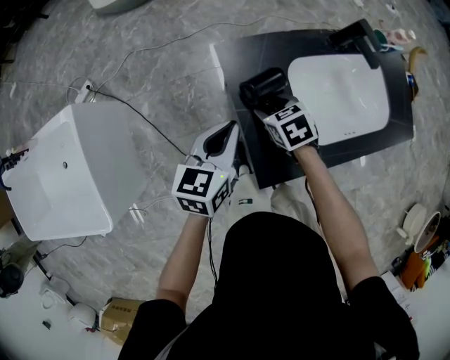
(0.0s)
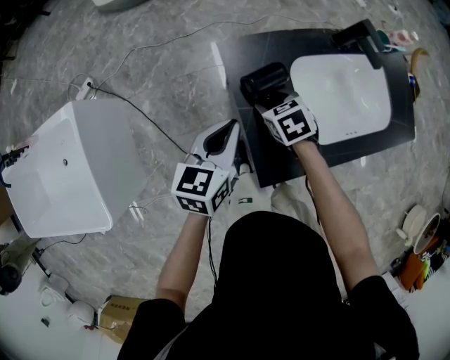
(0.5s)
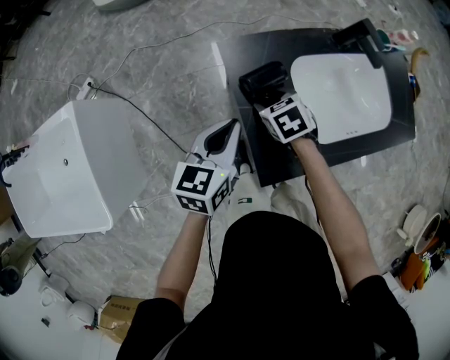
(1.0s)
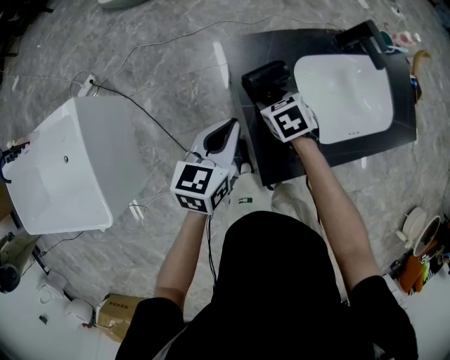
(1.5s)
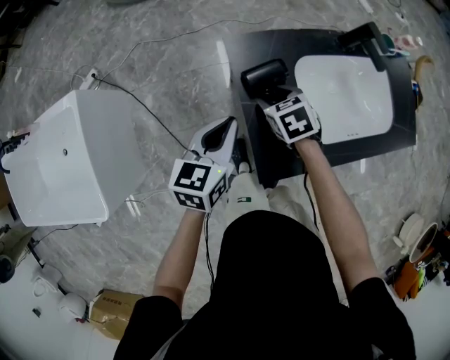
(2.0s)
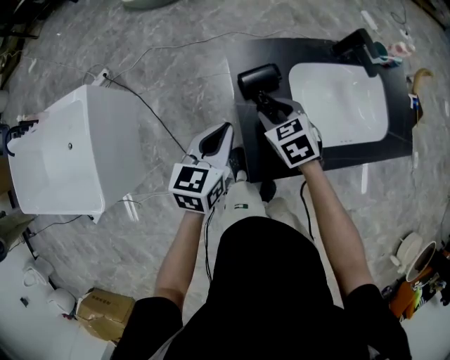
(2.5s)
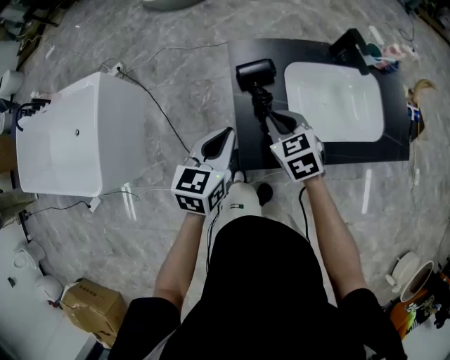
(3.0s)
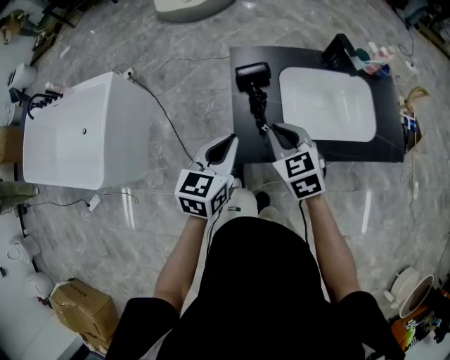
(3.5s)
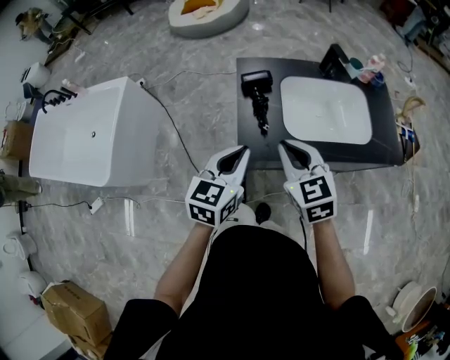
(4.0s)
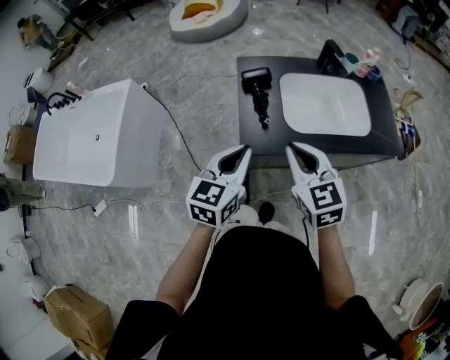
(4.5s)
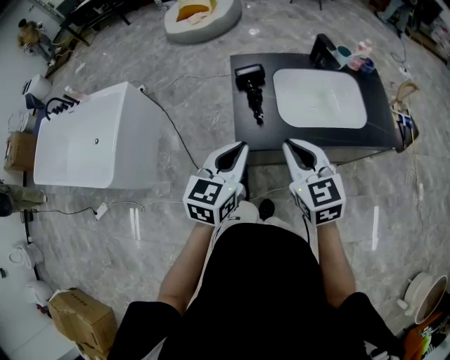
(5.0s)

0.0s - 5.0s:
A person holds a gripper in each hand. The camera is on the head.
0.0s - 2.5s: The right gripper travels upward by about 5 cm.
2.5s - 5.0s: Both grippers travel together backward and upward, roughly 30 cm. The right gripper points its fingers roughly 30 degrees further upward, and closes.

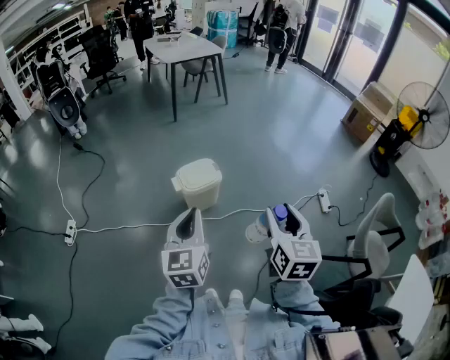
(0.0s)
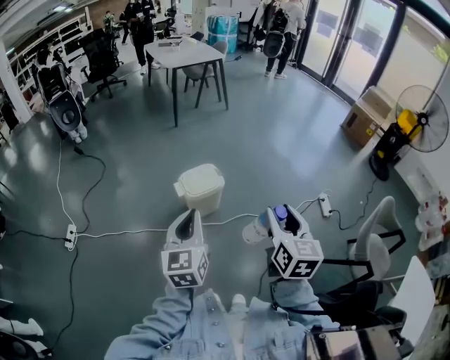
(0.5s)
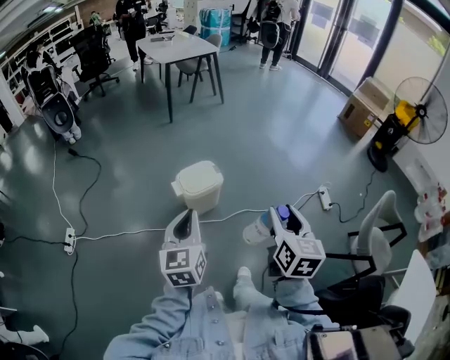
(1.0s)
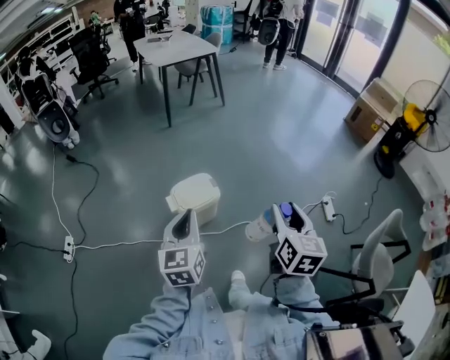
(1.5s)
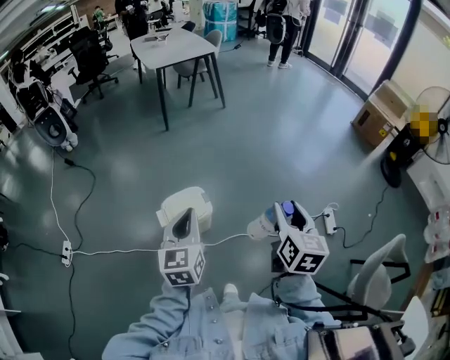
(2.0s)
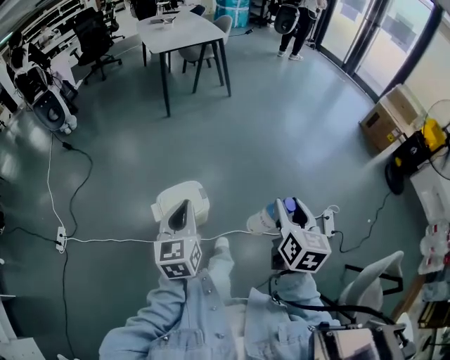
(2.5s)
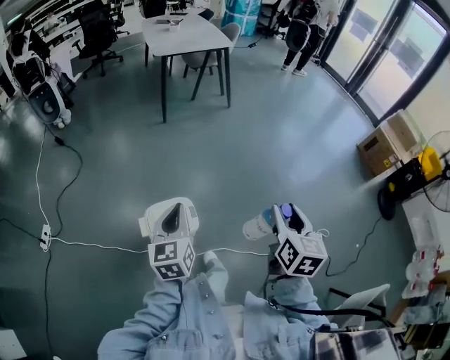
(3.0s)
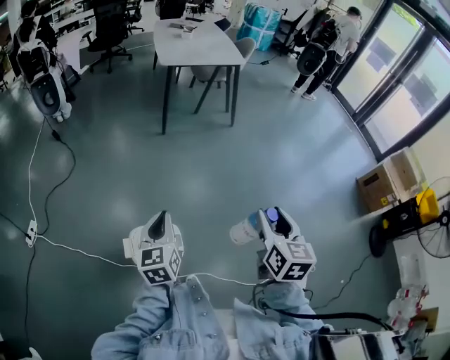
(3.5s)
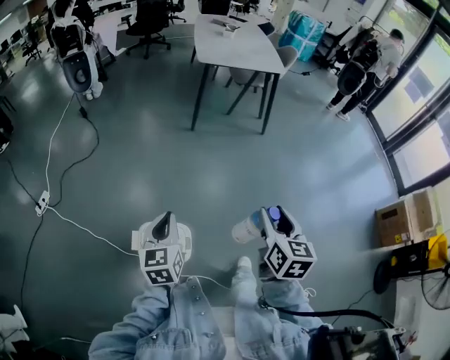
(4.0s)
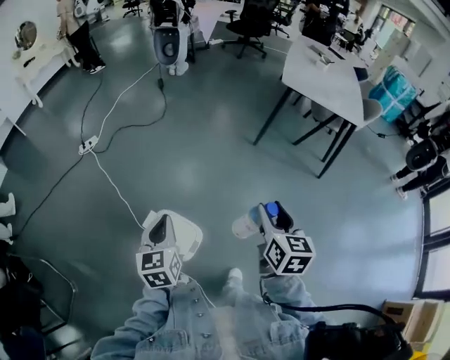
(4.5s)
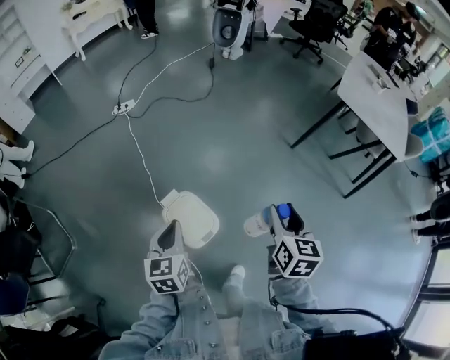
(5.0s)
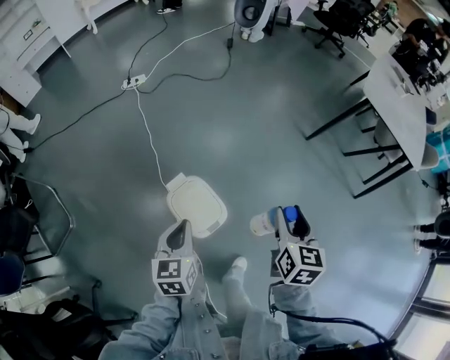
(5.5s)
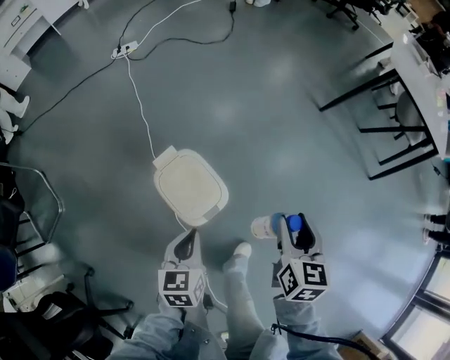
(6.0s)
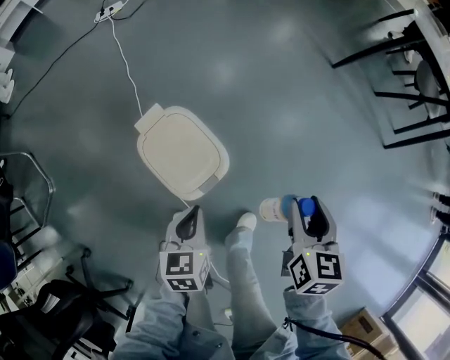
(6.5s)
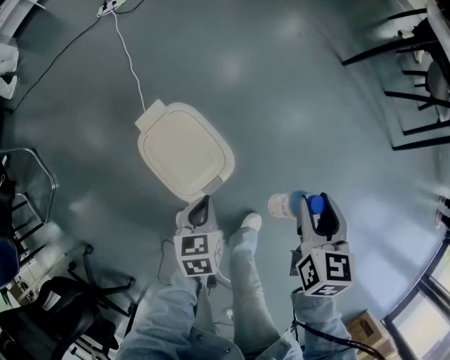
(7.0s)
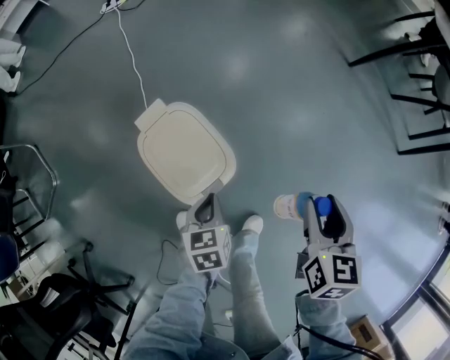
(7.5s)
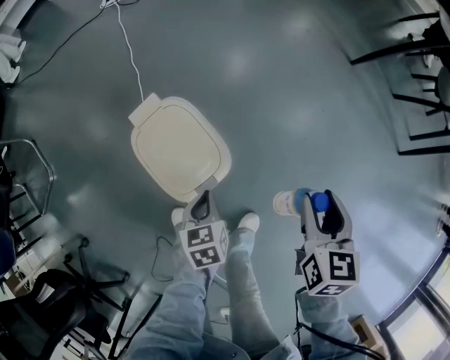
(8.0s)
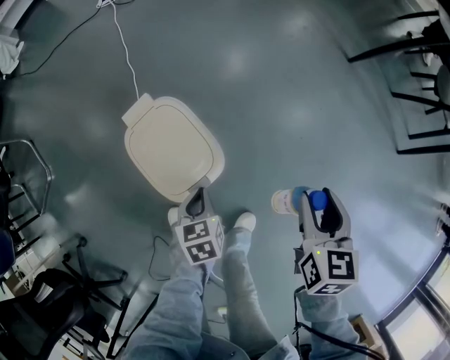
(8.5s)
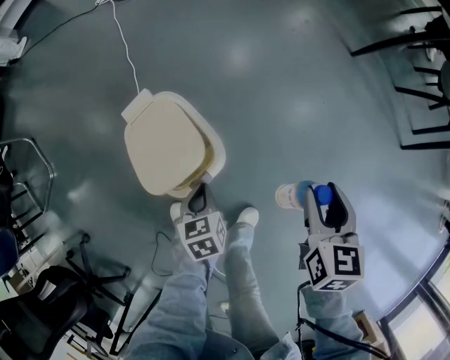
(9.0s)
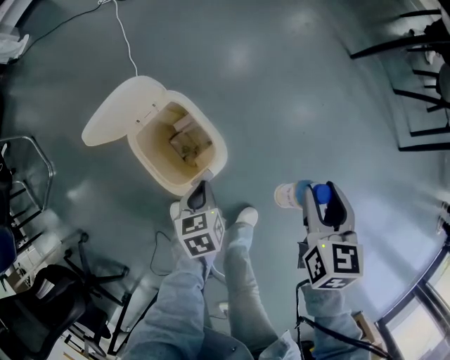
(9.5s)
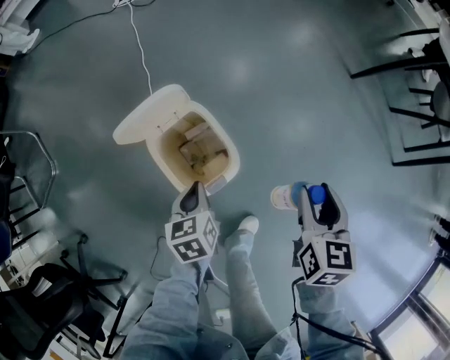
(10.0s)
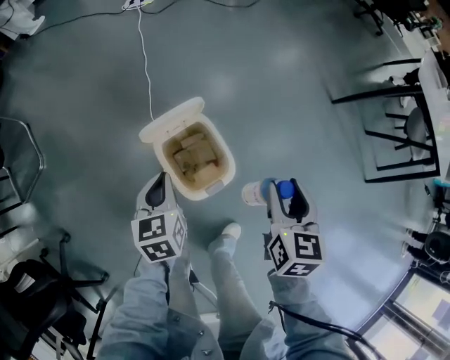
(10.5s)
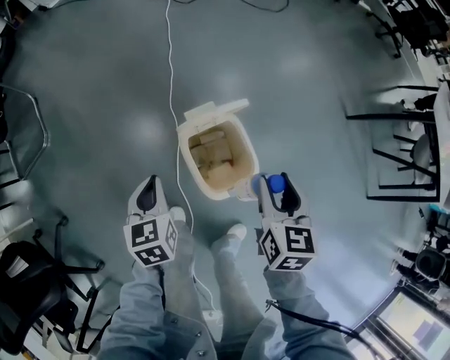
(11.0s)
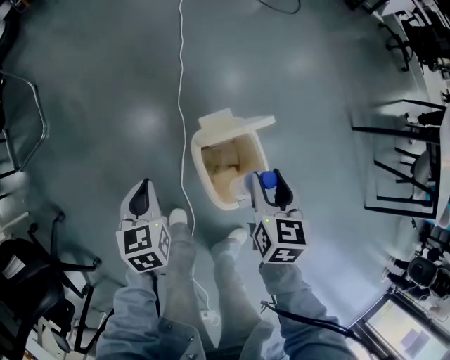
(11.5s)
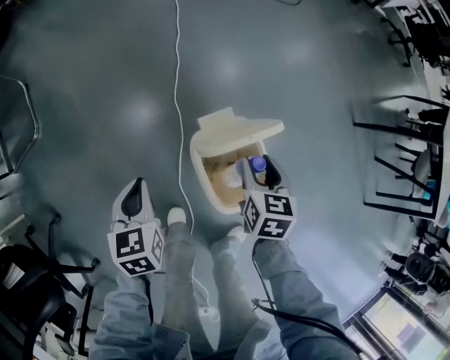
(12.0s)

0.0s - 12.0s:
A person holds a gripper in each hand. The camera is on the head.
0.0s - 2.0s: Both grippers move forward, approximately 30 cm.
2.0s - 4.0s: The right gripper moves approximately 40 cm, and rotates approximately 30 degrees; the left gripper changes place by about 35 cm, and changes its angle by roughly 30 degrees.
4.0s - 6.0s: The two grippers go about 25 cm downward. The left gripper changes its angle by approximately 50 degrees, while the right gripper swivels roughly 50 degrees.
6.0s - 8.0s: The left gripper shifts approximately 20 cm downward. The right gripper travels downward by approximately 15 cm.
8.0s - 10.0s: The right gripper moves about 5 cm. Meanwhile the left gripper goes approximately 10 cm upward and to the left.
10.0s - 12.0s: The left gripper is displaced to the left by about 30 cm. Meanwhile the right gripper shifts some 30 cm to the left and forward.

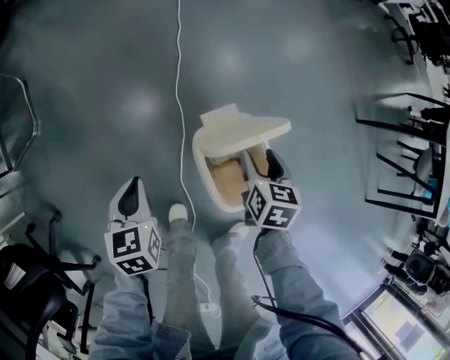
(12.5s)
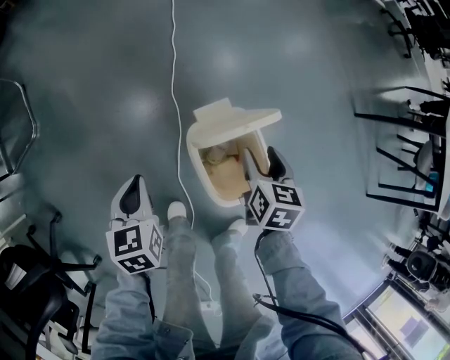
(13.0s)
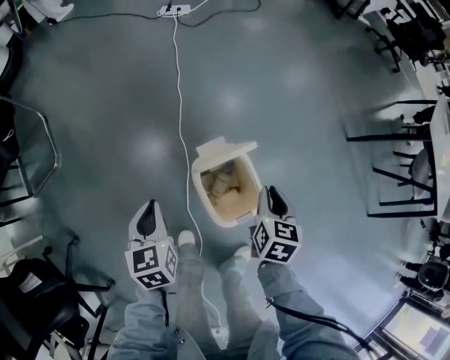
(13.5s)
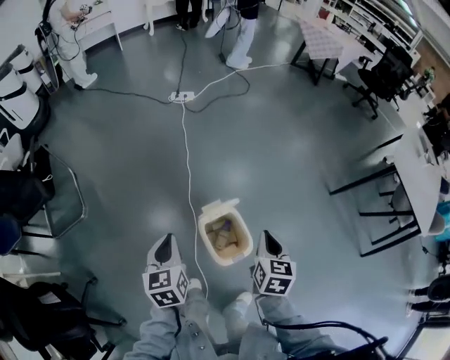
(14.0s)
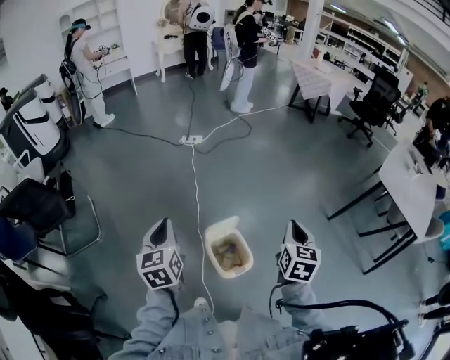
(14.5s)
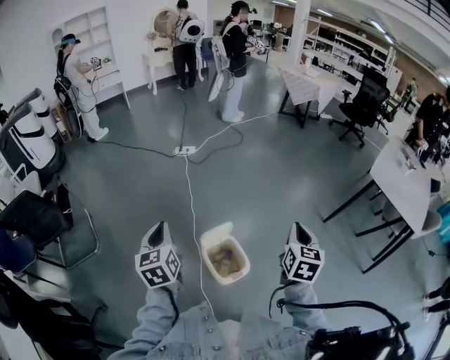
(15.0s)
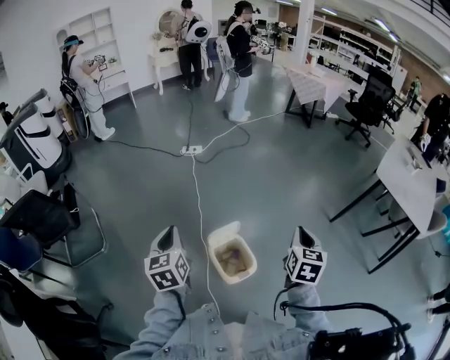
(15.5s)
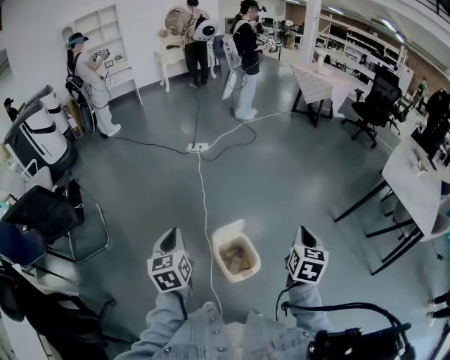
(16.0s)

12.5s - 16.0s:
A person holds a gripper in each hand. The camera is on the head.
12.5s - 14.5s: The two grippers go some 50 cm upward. The left gripper changes its angle by roughly 30 degrees; the right gripper changes its angle by about 30 degrees, and closes up.
14.5s - 16.0s: The grippers stay close to where they were, moving slightly.

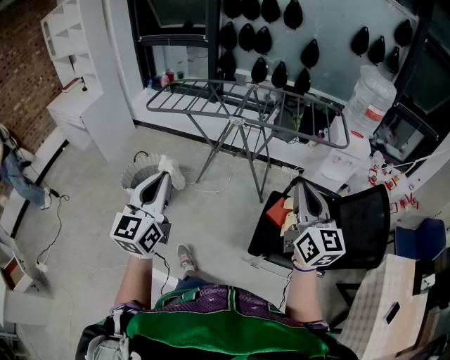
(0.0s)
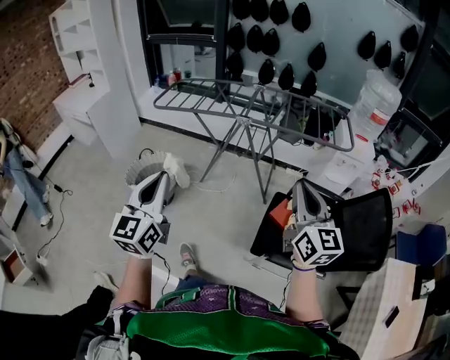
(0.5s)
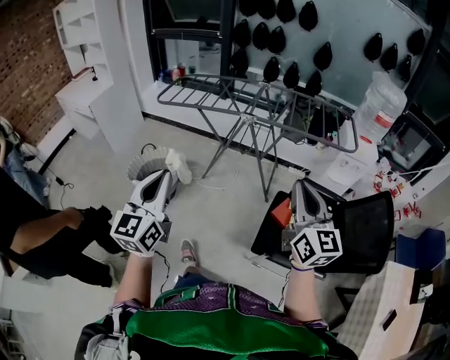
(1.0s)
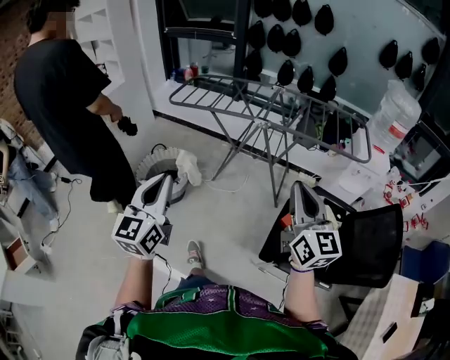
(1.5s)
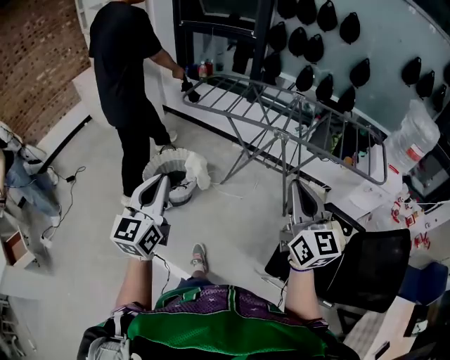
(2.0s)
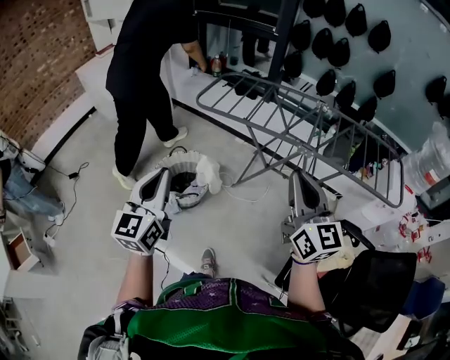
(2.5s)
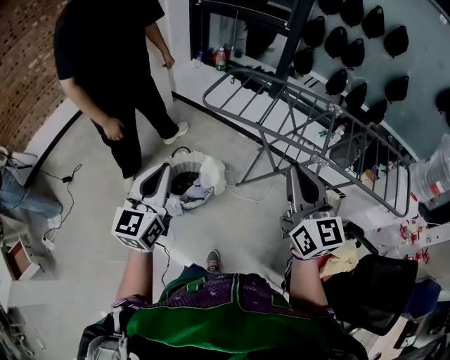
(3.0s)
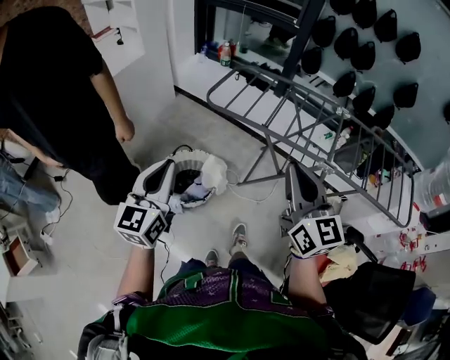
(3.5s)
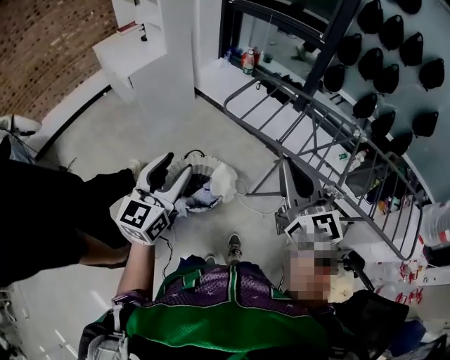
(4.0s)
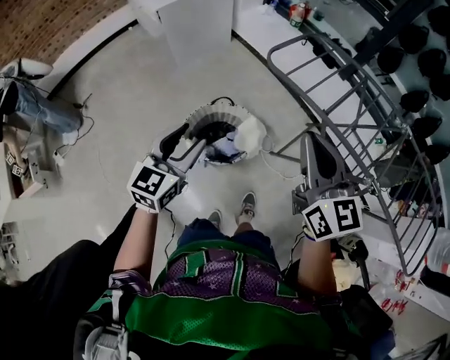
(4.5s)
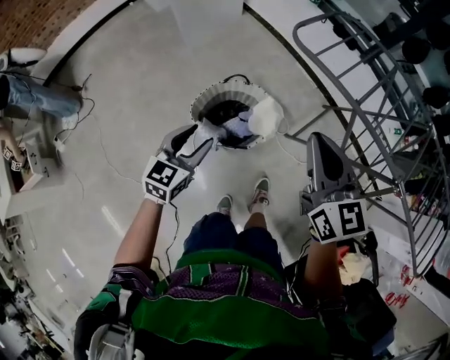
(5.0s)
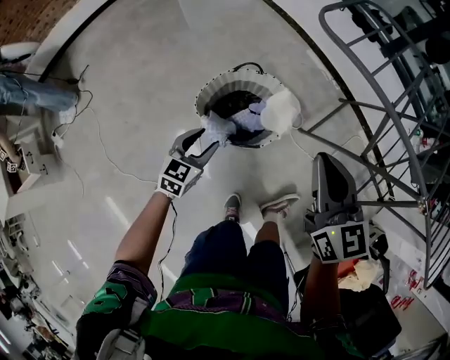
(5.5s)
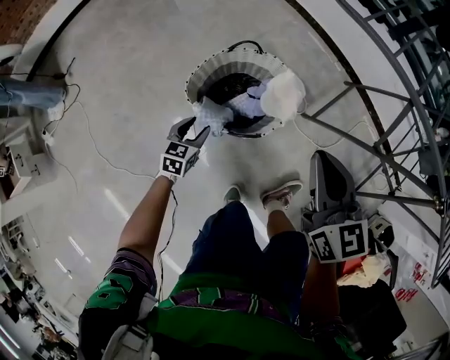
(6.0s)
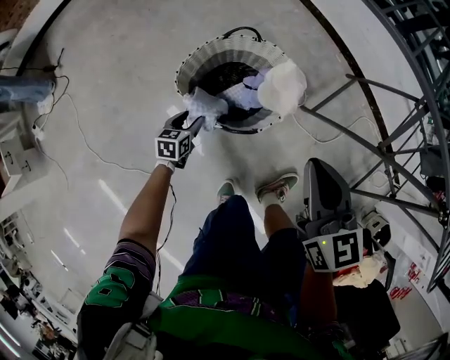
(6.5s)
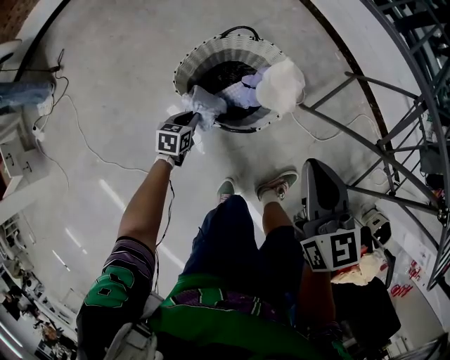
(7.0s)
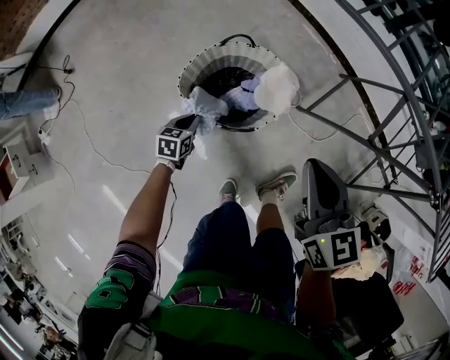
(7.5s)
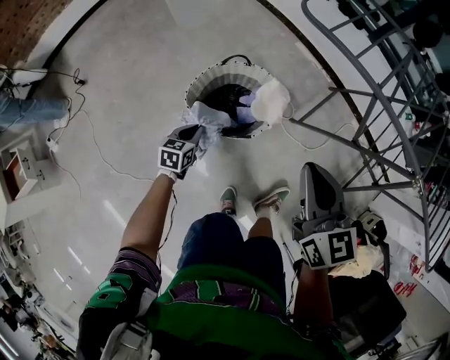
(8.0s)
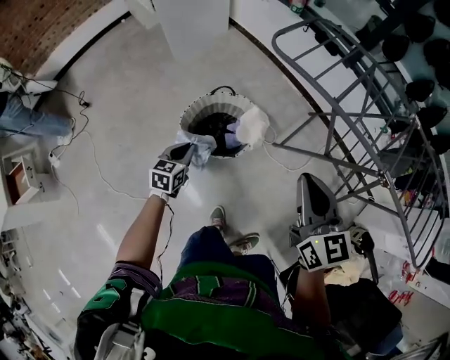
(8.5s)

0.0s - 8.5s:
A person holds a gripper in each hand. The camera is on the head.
0.0s - 2.0s: Both grippers move to the left and forward, roughly 20 cm.
2.0s - 4.0s: Both grippers move forward and to the left, approximately 40 cm. The left gripper opens up; the right gripper turns by about 20 degrees.
4.0s - 6.5s: The left gripper travels downward by roughly 70 cm, and tilts its fingers some 50 degrees downward. Meanwhile the right gripper goes roughly 50 cm downward, and turns by approximately 30 degrees.
6.5s - 8.5s: Both grippers move upward, roughly 30 cm. The left gripper closes.
